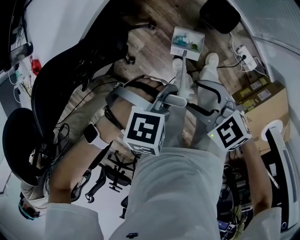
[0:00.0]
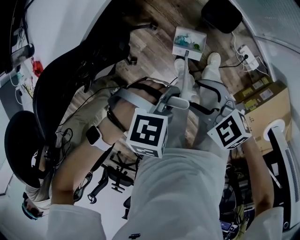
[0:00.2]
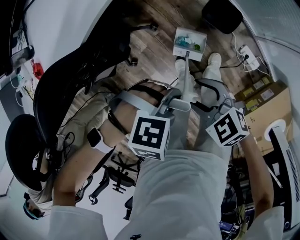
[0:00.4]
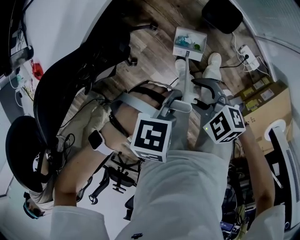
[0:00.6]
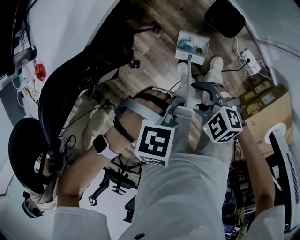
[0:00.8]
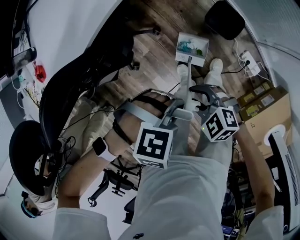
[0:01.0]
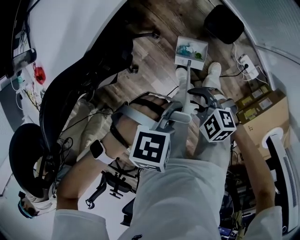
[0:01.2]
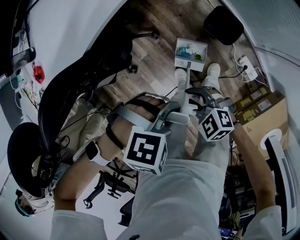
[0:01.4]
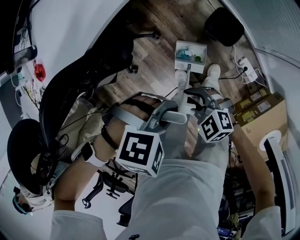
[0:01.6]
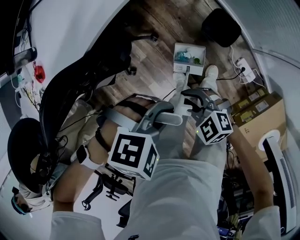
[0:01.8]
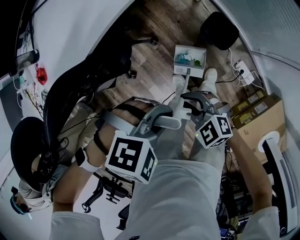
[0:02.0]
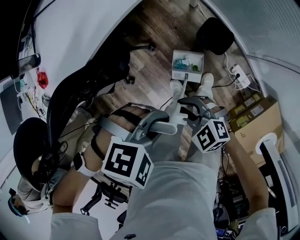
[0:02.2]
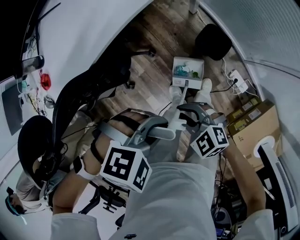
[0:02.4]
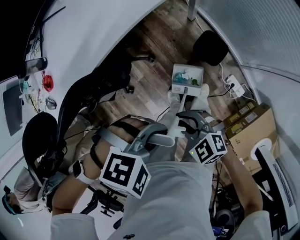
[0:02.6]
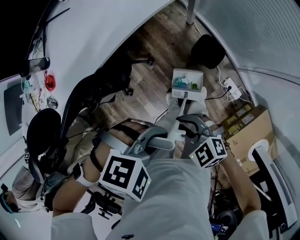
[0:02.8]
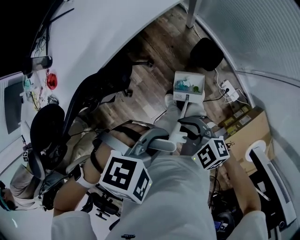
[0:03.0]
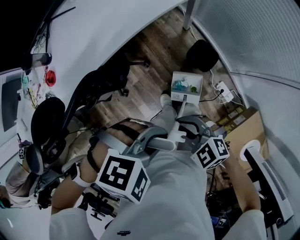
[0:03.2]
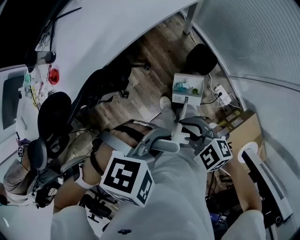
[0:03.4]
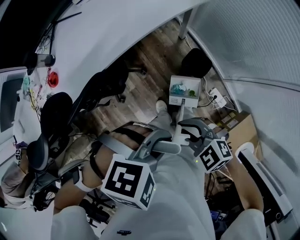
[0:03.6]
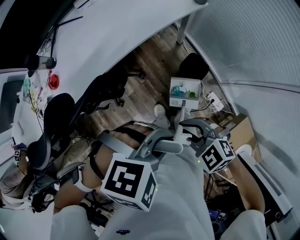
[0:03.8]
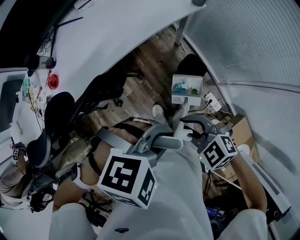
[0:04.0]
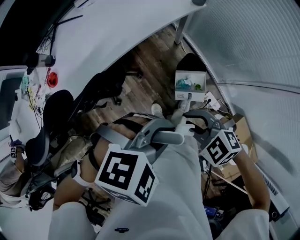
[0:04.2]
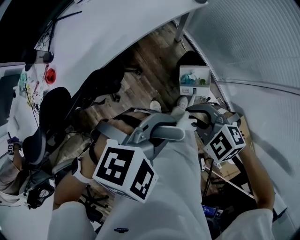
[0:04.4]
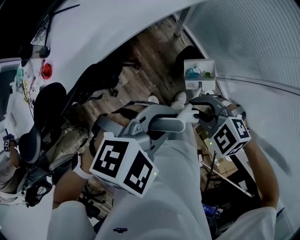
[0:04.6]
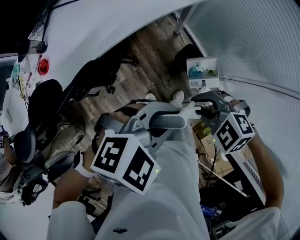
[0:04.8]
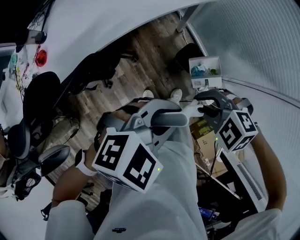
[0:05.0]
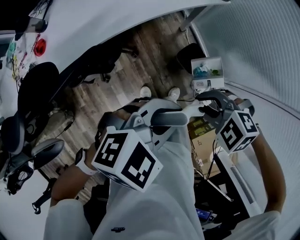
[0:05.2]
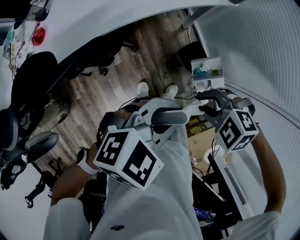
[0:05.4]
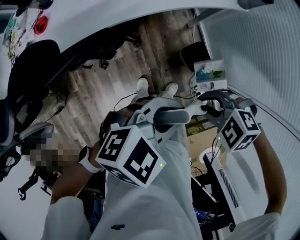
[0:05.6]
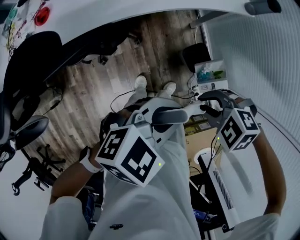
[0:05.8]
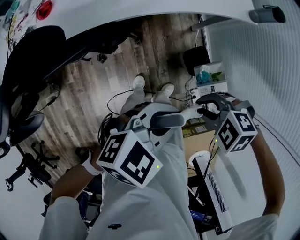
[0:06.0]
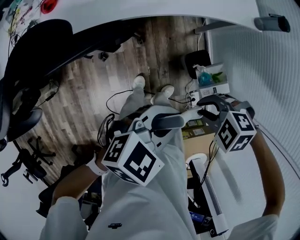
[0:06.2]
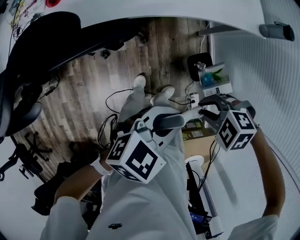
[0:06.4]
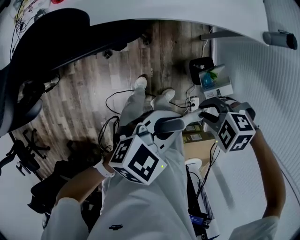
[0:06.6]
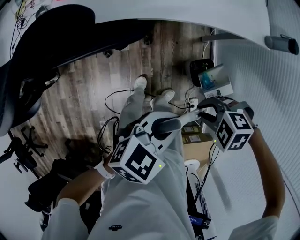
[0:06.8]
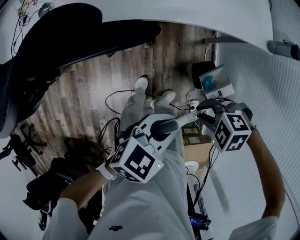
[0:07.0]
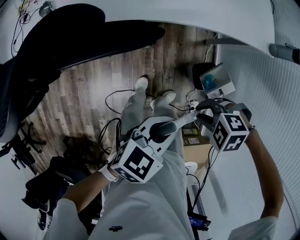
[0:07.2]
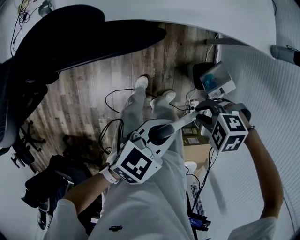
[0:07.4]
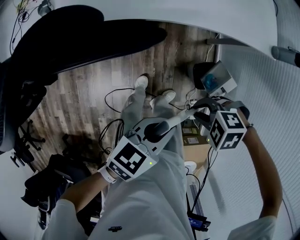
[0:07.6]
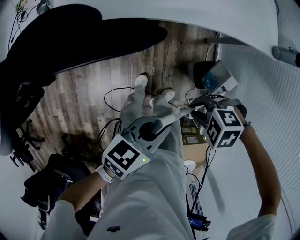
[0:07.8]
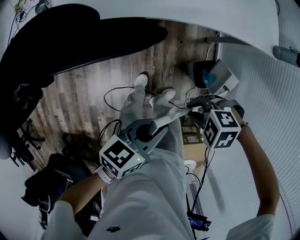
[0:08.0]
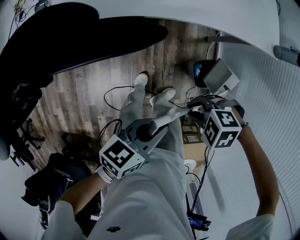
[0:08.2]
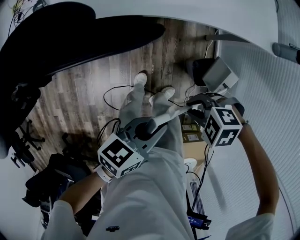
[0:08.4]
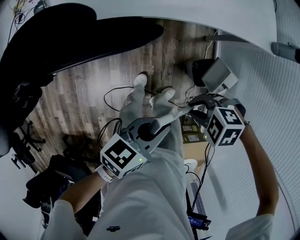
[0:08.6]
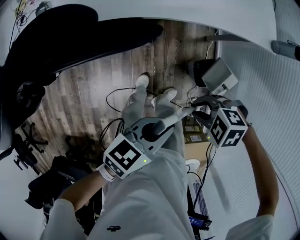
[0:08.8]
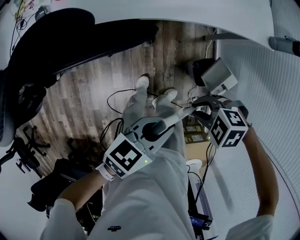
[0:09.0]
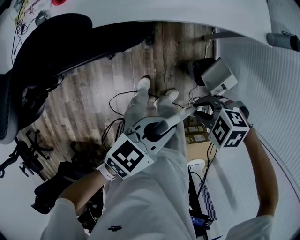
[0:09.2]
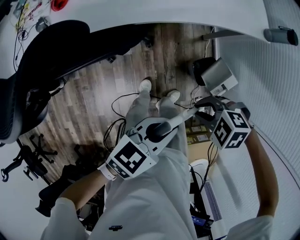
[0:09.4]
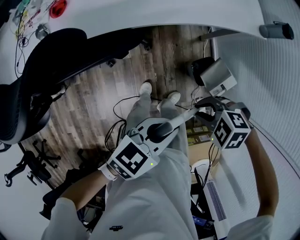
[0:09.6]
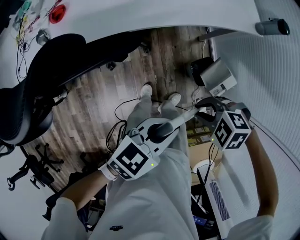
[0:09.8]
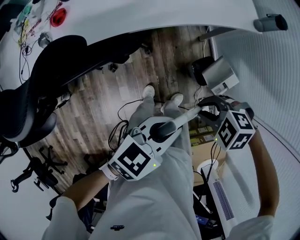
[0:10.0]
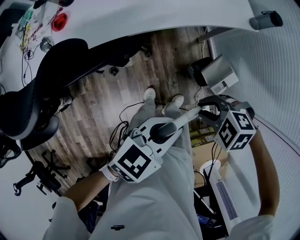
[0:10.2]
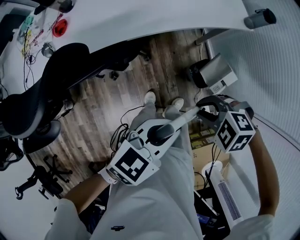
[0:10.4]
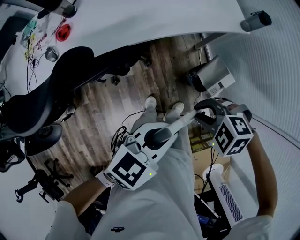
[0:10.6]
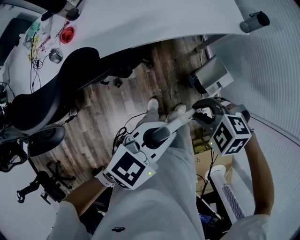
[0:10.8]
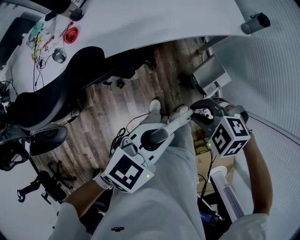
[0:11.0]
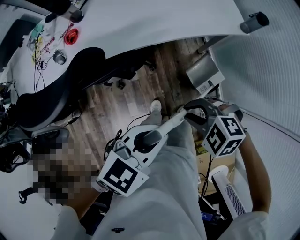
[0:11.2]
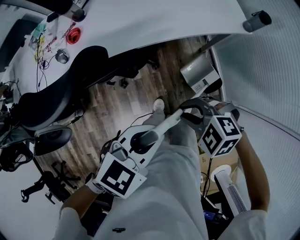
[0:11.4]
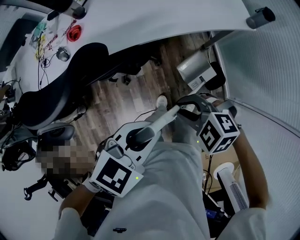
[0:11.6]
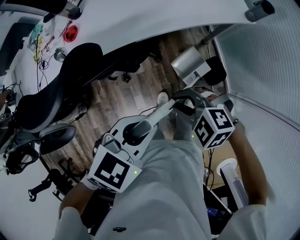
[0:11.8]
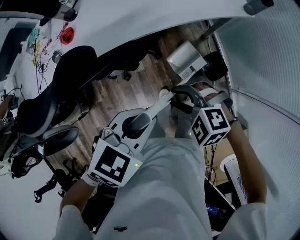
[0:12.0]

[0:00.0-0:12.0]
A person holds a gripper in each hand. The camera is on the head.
0:00.0 to 0:01.6: The right gripper shifts roughly 10 cm downward, and closes its fingers.
0:01.6 to 0:03.0: The two grippers go about 15 cm upward.
0:03.0 to 0:04.4: Both grippers travel together upward, roughly 10 cm.
0:04.4 to 0:06.0: Both grippers move downward, about 10 cm. The right gripper swivels some 40 degrees. Meanwhile the left gripper rotates around the line of its fingers by some 40 degrees, counterclockwise from behind.
0:06.0 to 0:07.6: The two grippers go about 5 cm downward. The left gripper rotates roughly 40 degrees.
0:07.6 to 0:09.0: The grippers move only a little.
0:09.0 to 0:10.4: The grippers both shift upward by approximately 10 cm. The left gripper rotates roughly 20 degrees.
0:10.4 to 0:12.0: The left gripper ends up roughly 10 cm from where it was, and rotates about 20 degrees. Meanwhile the right gripper moves roughly 10 cm, and opens its fingers.

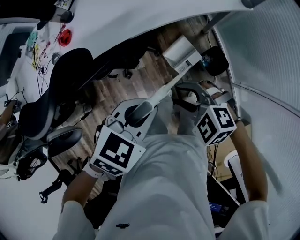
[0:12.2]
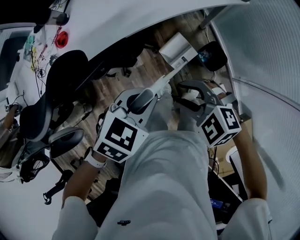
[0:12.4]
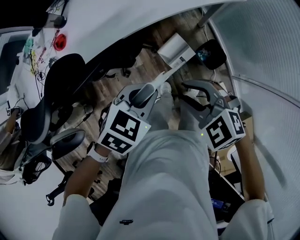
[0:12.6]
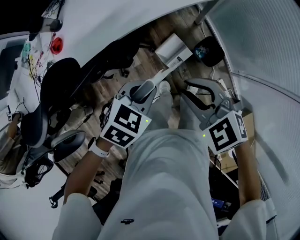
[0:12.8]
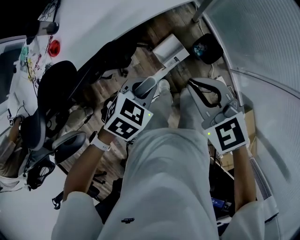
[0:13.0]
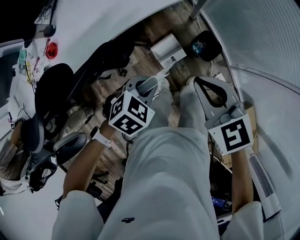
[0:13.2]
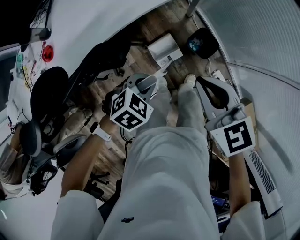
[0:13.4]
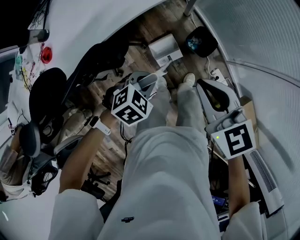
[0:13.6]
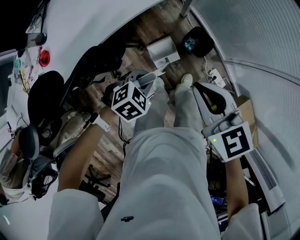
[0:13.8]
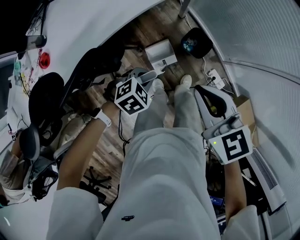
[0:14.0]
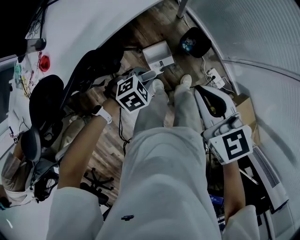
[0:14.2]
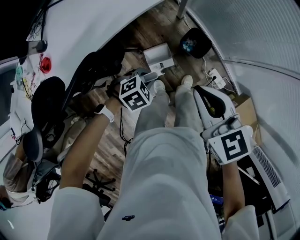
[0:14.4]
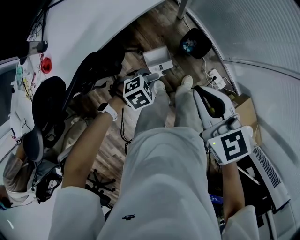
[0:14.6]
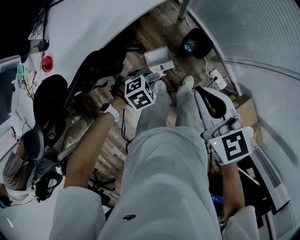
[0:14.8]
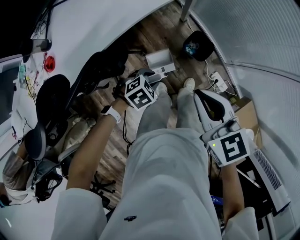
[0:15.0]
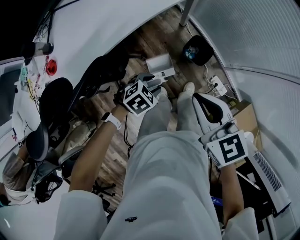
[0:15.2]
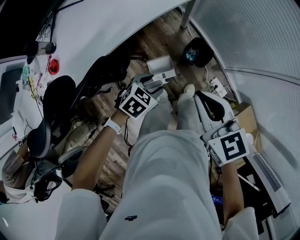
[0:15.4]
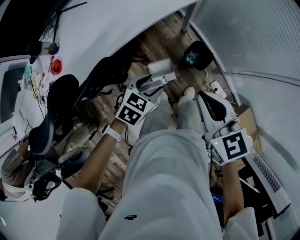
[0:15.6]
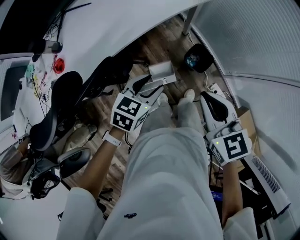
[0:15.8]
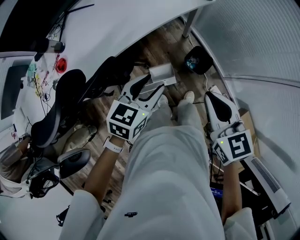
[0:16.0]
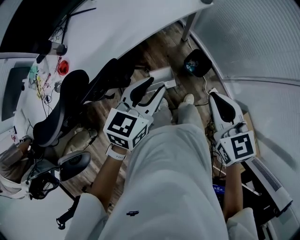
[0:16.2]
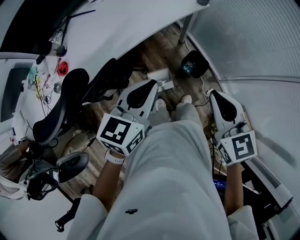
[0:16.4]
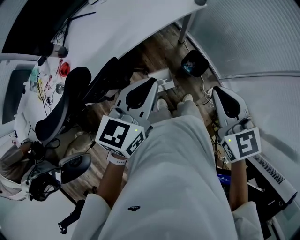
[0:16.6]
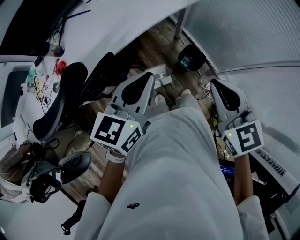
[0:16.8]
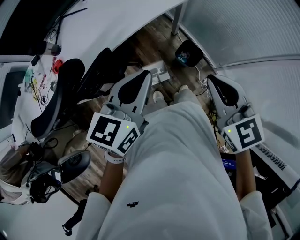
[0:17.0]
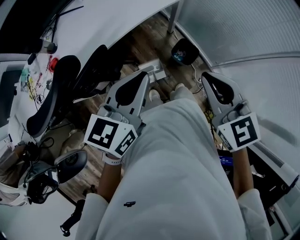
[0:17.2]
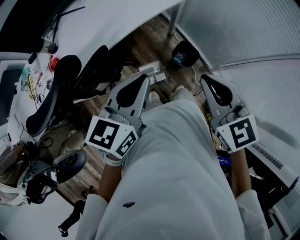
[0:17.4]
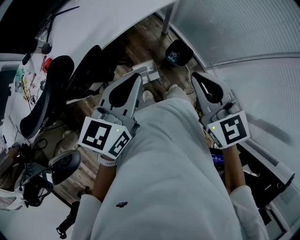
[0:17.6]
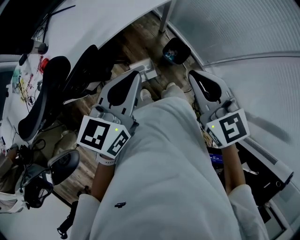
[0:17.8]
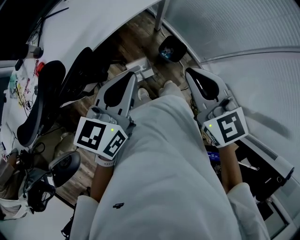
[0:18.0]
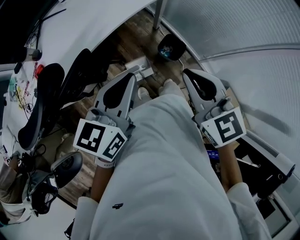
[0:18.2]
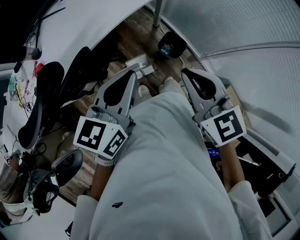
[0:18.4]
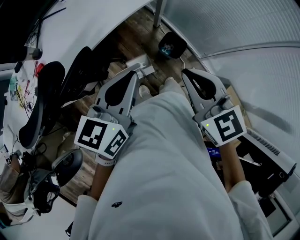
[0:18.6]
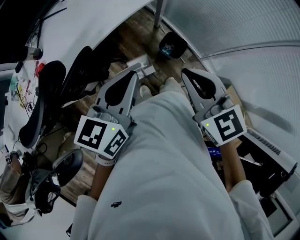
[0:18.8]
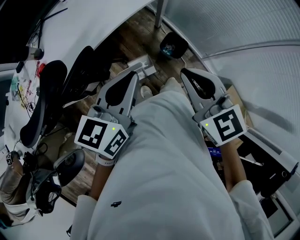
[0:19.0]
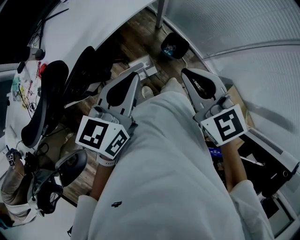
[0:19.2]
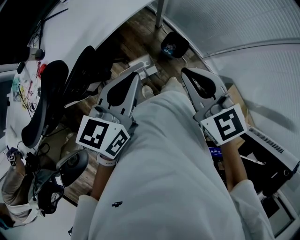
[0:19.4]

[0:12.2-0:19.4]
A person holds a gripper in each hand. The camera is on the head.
0:12.2 to 0:13.6: The right gripper ends up some 15 cm from where it was, turns by some 60 degrees, and closes, while the left gripper shifts approximately 15 cm downward, and turns by some 30 degrees.
0:13.6 to 0:15.0: The left gripper travels downward by approximately 5 cm.
0:15.0 to 0:16.6: The left gripper heads upward, covering roughly 35 cm, tilts its fingers approximately 50 degrees upward, and opens, then closes once more. Meanwhile the right gripper moves upward and to the right, approximately 10 cm.
0:16.6 to 0:19.4: The grippers make only small movements.

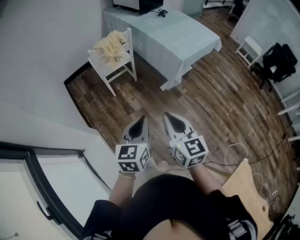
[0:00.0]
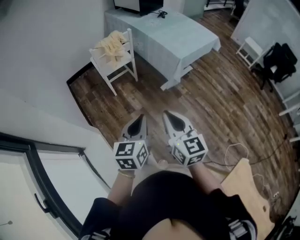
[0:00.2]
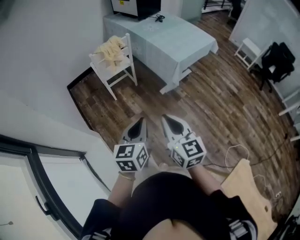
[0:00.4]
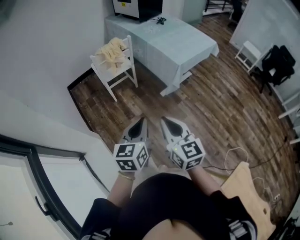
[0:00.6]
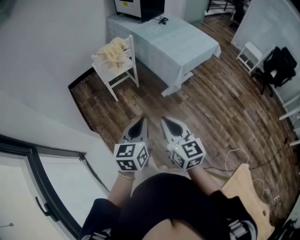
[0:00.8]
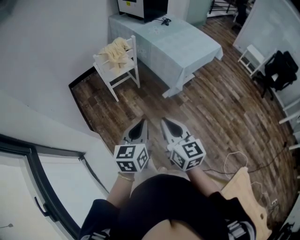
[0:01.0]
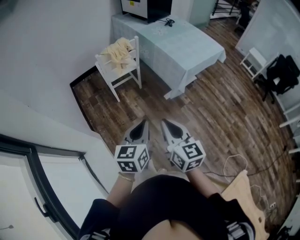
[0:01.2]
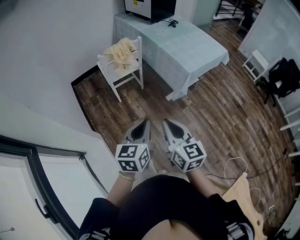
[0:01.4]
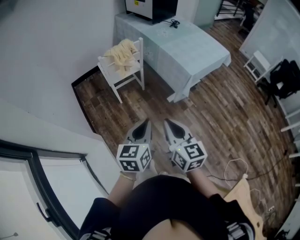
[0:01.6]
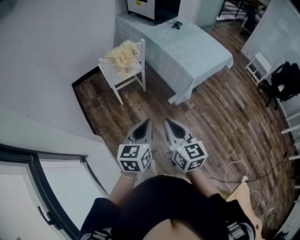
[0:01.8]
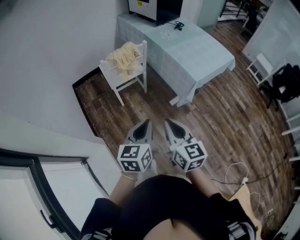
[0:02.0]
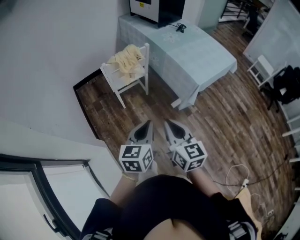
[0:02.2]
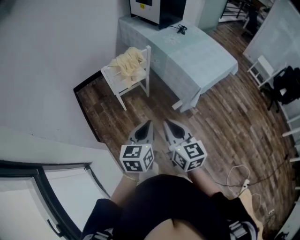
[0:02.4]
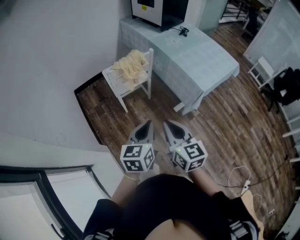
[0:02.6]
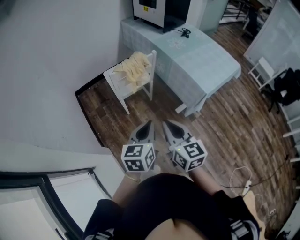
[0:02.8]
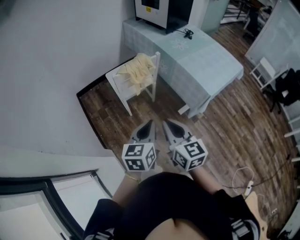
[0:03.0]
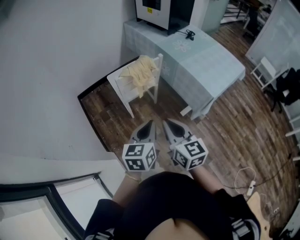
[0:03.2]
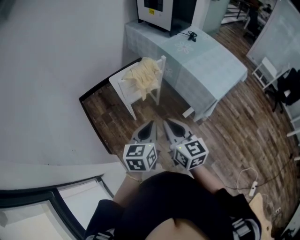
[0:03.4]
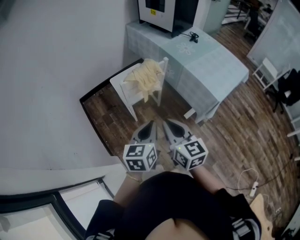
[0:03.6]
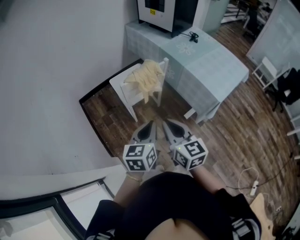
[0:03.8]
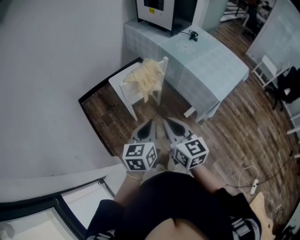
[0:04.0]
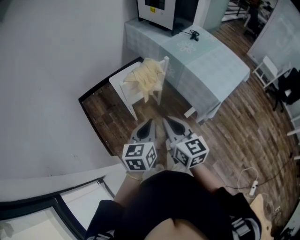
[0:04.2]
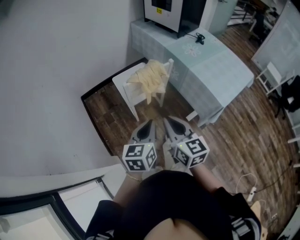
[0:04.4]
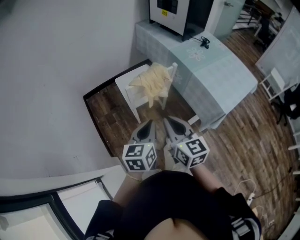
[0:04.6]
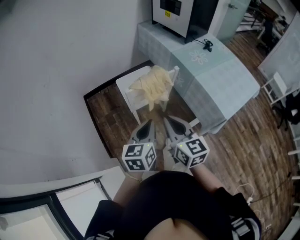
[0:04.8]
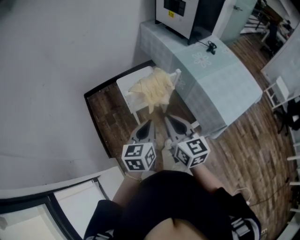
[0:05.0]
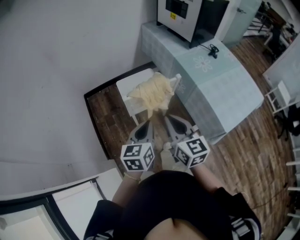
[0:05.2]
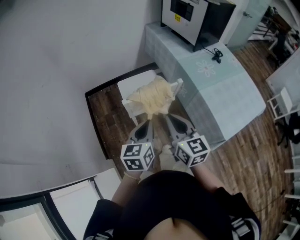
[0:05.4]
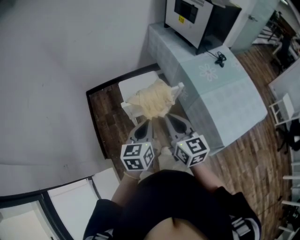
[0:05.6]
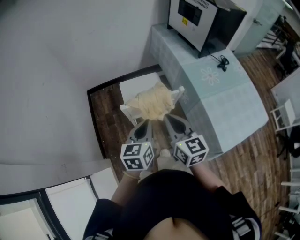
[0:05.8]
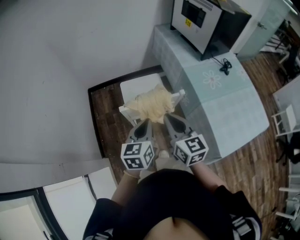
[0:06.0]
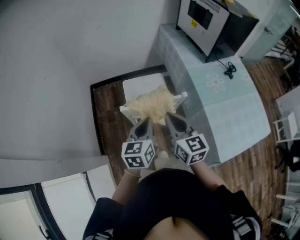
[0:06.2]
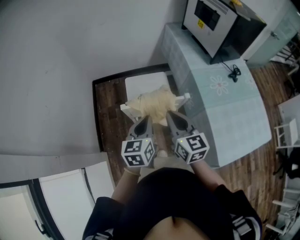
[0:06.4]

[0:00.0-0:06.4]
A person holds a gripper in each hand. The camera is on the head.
0:00.0 to 0:01.6: The two grippers go some 5 cm forward.
0:01.6 to 0:03.2: Both grippers travel together forward and to the left, some 20 cm.
0:03.2 to 0:04.8: The two grippers go about 15 cm forward.
0:04.8 to 0:06.4: The left gripper is displaced forward by some 15 cm, and swivels some 20 degrees, while the right gripper is displaced forward and to the right by about 20 cm.
